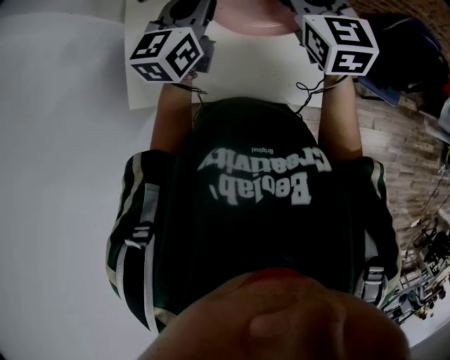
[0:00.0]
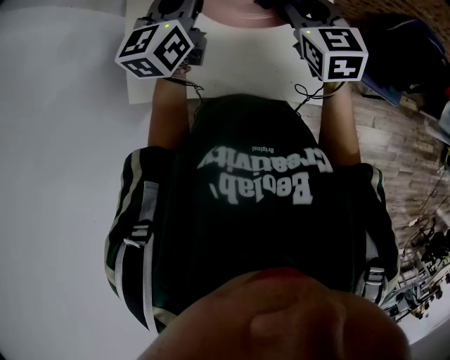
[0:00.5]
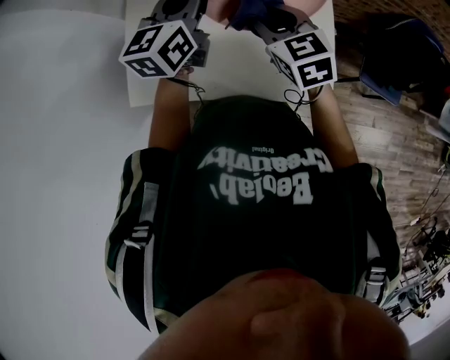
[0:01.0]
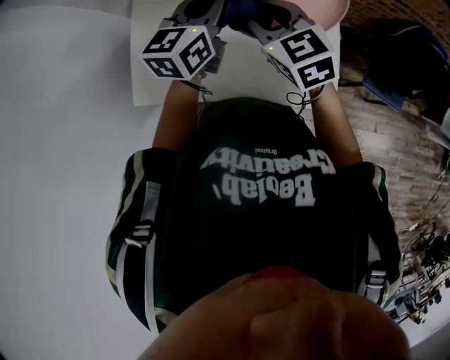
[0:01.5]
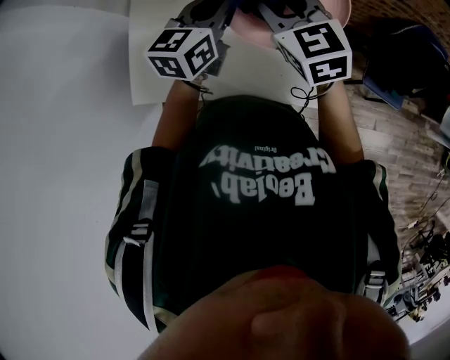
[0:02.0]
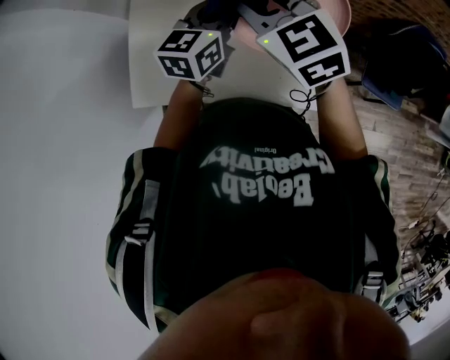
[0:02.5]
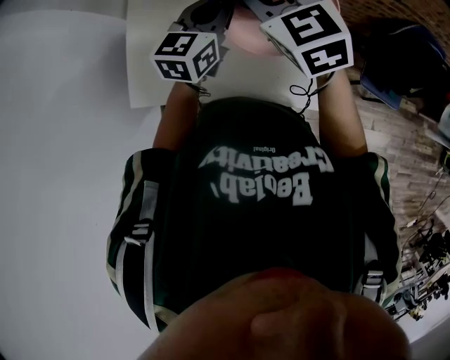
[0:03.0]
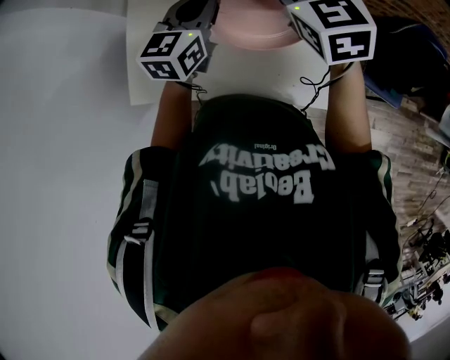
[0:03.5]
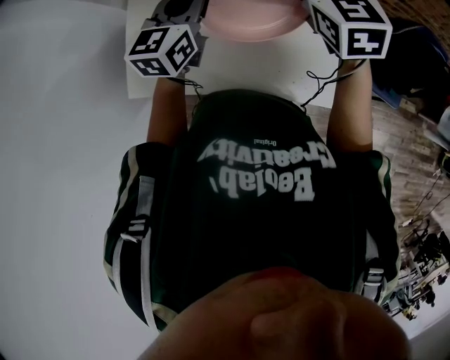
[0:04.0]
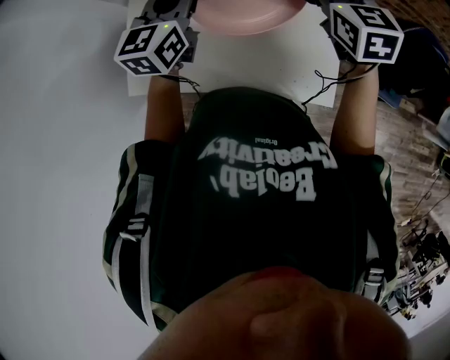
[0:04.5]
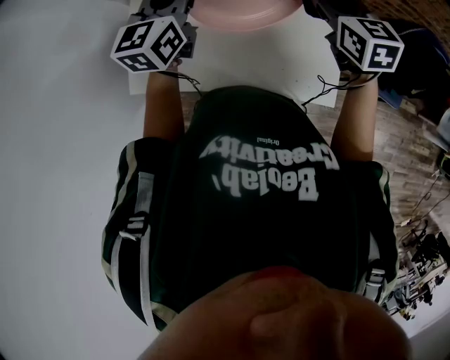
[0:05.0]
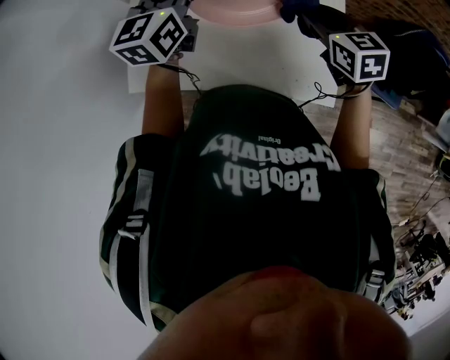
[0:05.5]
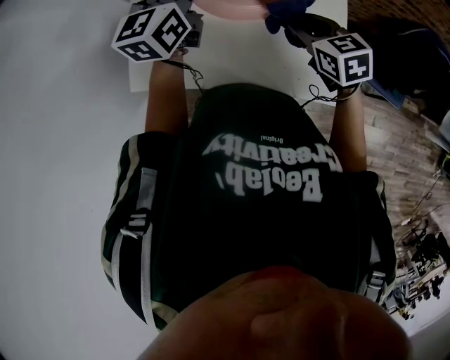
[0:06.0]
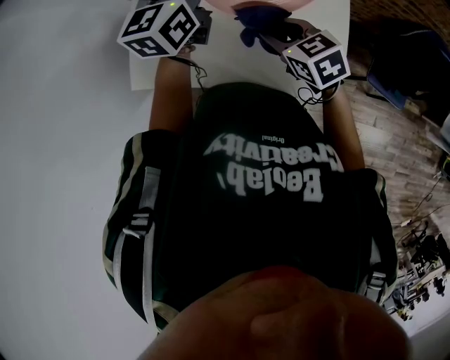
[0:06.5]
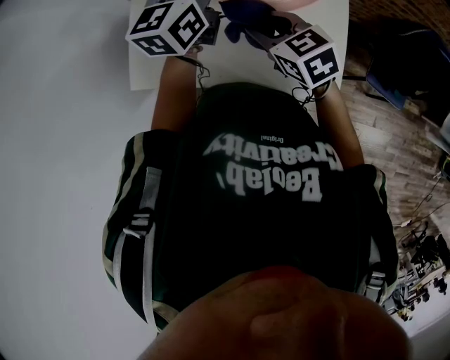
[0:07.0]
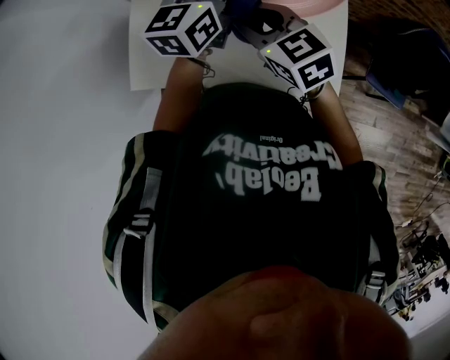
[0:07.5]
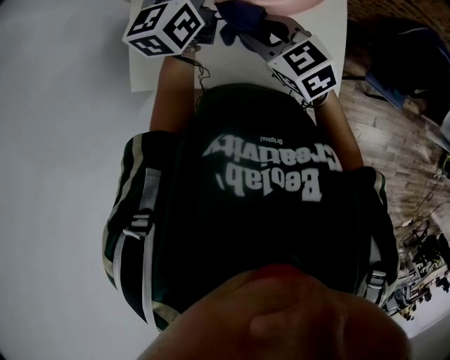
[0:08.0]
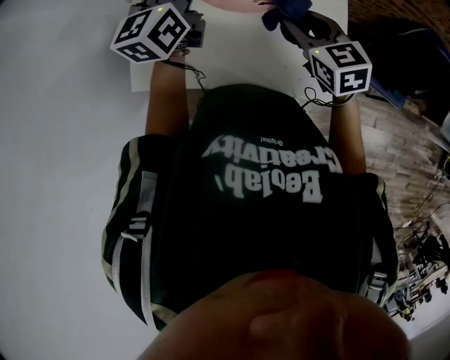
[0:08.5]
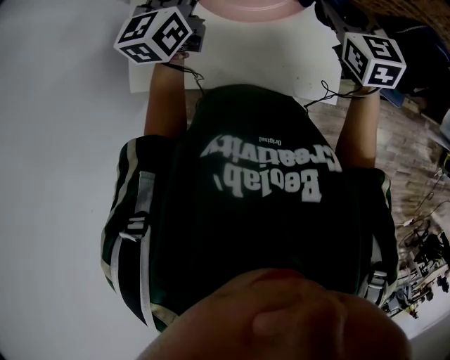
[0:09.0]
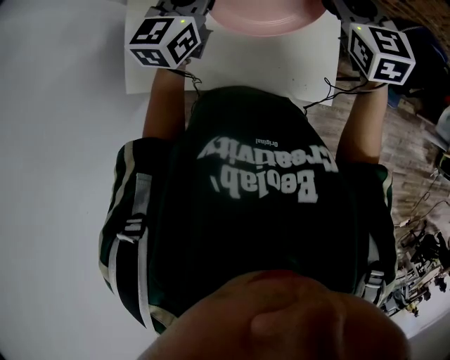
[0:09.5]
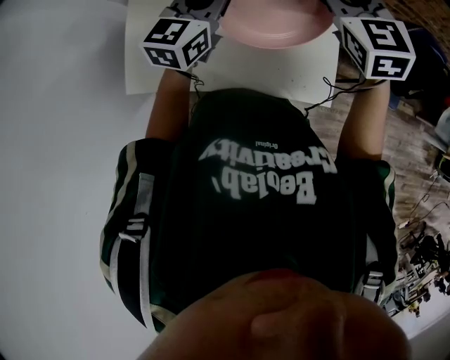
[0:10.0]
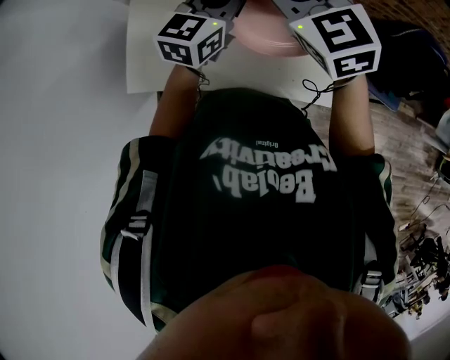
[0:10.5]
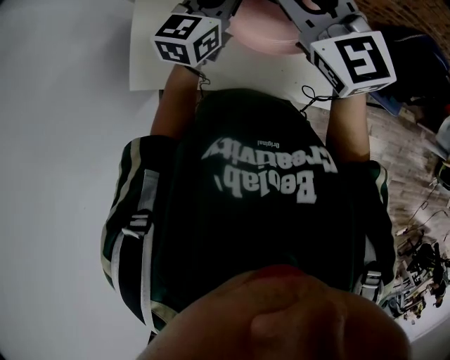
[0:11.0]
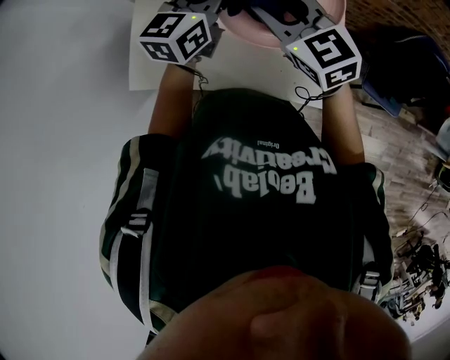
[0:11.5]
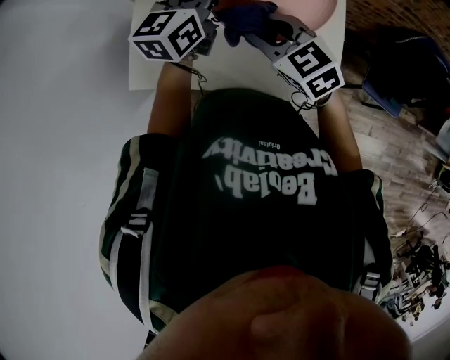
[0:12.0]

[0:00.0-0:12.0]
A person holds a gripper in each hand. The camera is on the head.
0:00.0 to 0:02.0: The right gripper shifts about 10 cm to the left.
0:02.0 to 0:04.0: The right gripper is displaced to the right and forward by roughly 10 cm.
0:04.0 to 0:06.0: The right gripper travels downward and backward by roughly 20 cm, and changes its angle by approximately 30 degrees.
0:06.0 to 0:08.0: The right gripper heads to the left, covering roughly 10 cm.
0:08.0 to 0:10.0: The left gripper shifts by approximately 5 cm; the right gripper moves to the right, upward and forward, roughly 20 cm, and swivels roughly 30 degrees.
0:10.0 to 0:12.0: The right gripper moves to the left, downward and backward, approximately 20 cm, and changes its angle by approximately 30 degrees.

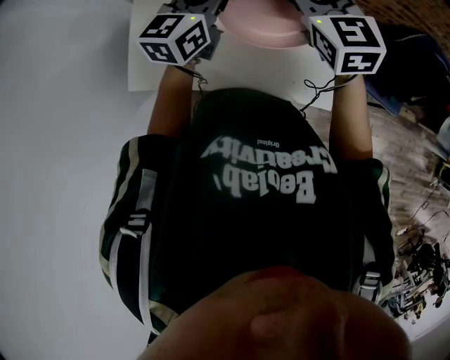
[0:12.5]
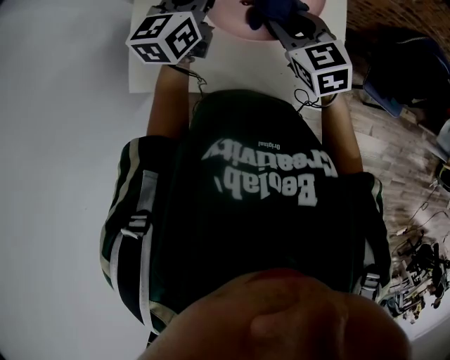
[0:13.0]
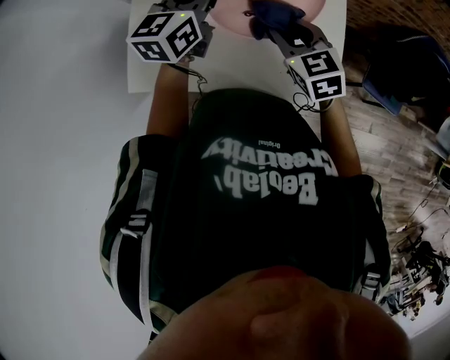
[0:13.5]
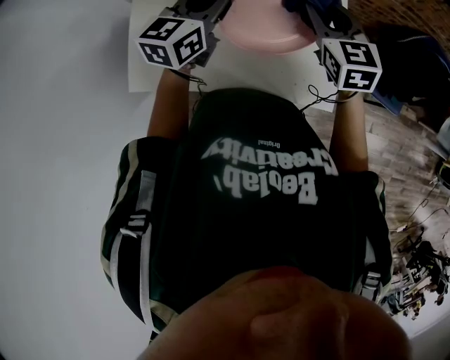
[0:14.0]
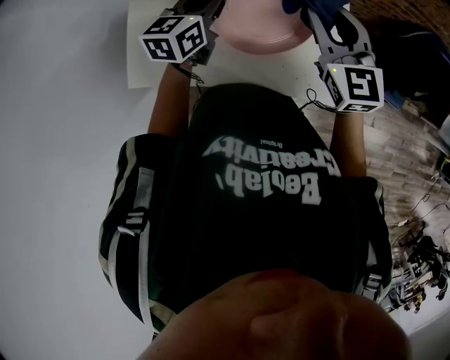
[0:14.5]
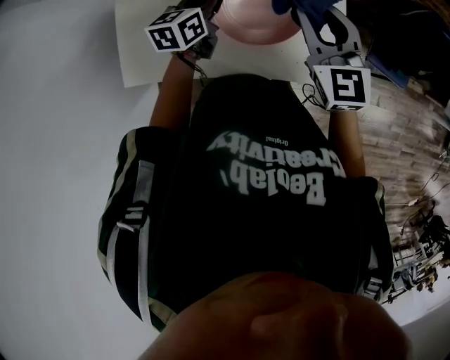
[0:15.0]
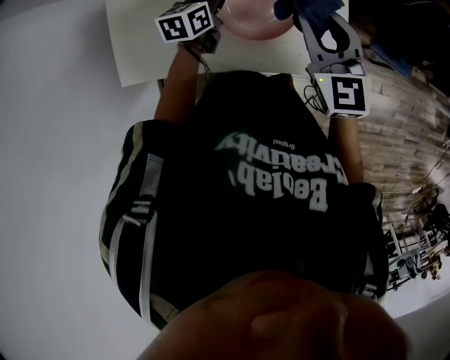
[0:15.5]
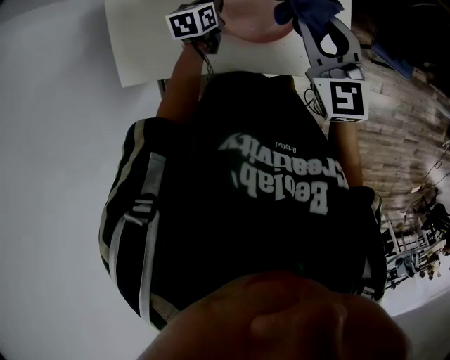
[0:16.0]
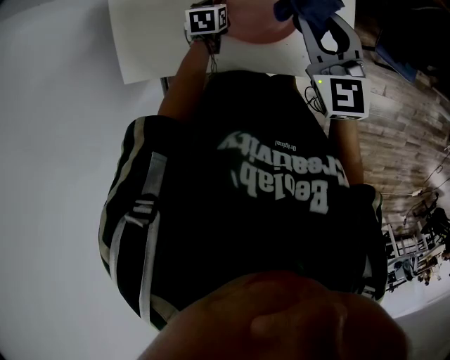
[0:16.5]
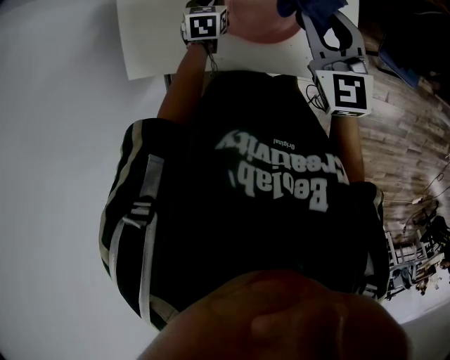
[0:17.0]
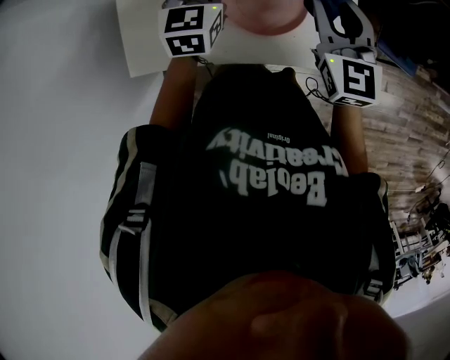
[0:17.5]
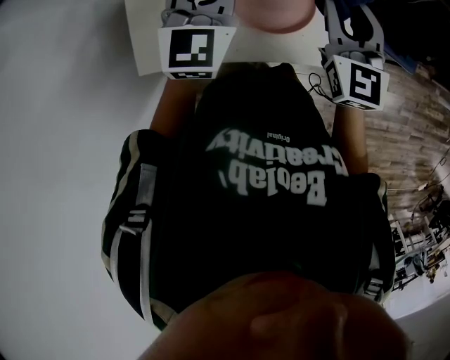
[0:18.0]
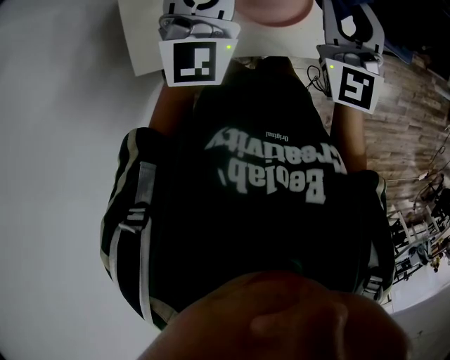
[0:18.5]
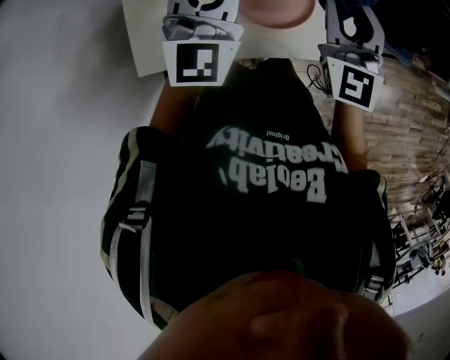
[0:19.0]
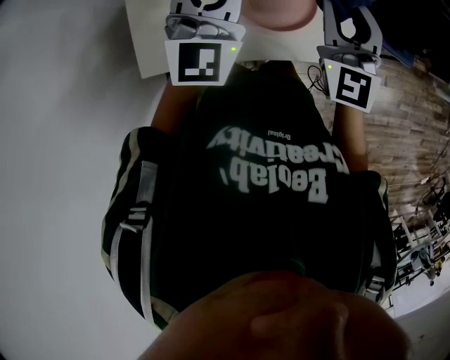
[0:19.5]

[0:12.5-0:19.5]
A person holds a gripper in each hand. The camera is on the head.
0:12.5 to 0:14.5: The right gripper goes downward and returns, roughly 15 cm each way. Meanwhile the left gripper heads downward, covering roughly 10 cm.
0:14.5 to 0:16.0: The right gripper heads downward, covering some 5 cm; the left gripper shifts some 20 cm downward, and turns by approximately 30 degrees.
0:16.0 to 0:17.5: The left gripper moves upward, about 20 cm, and turns by approximately 40 degrees.
0:17.5 to 0:19.5: The left gripper is displaced upward and backward by about 15 cm, and swivels some 40 degrees; the right gripper is displaced upward by about 5 cm.

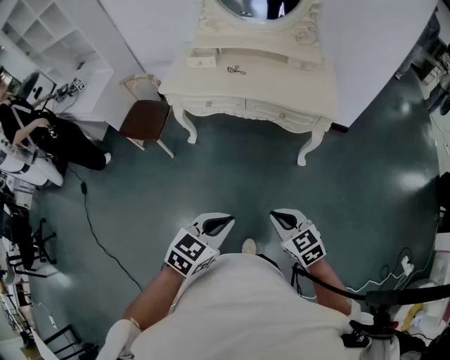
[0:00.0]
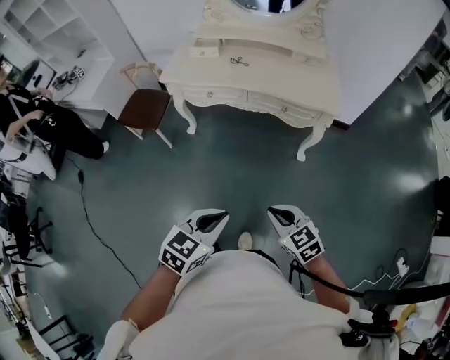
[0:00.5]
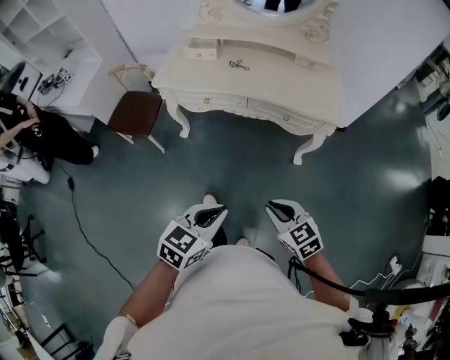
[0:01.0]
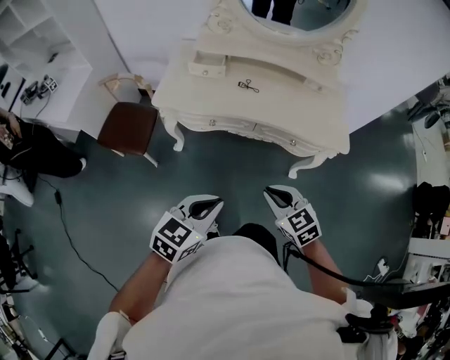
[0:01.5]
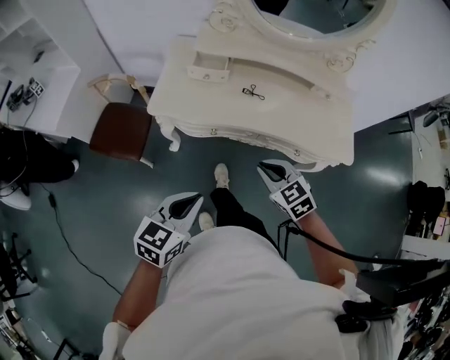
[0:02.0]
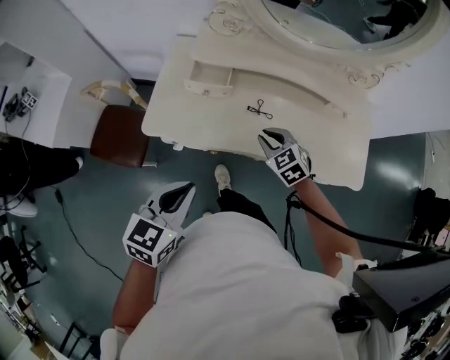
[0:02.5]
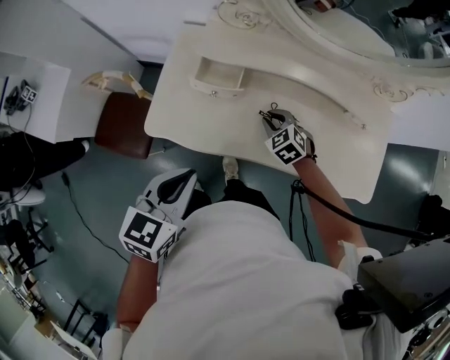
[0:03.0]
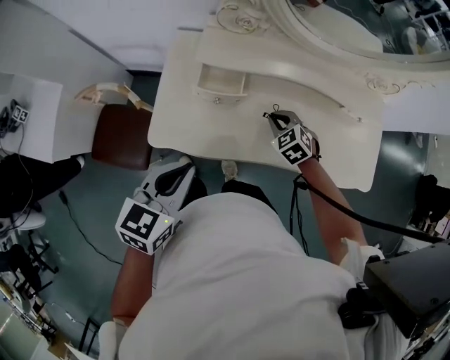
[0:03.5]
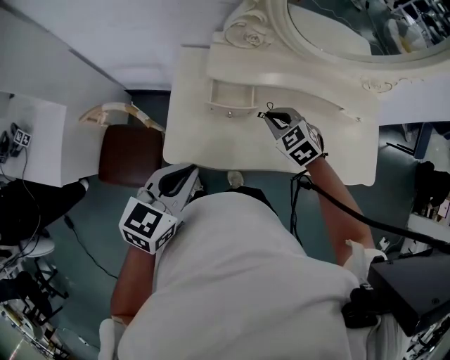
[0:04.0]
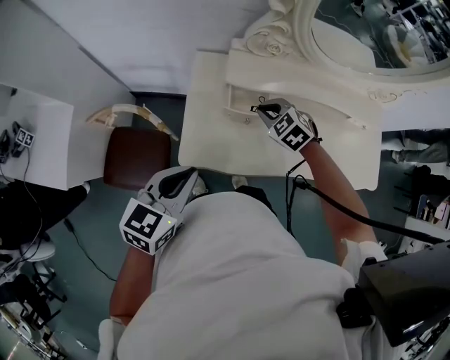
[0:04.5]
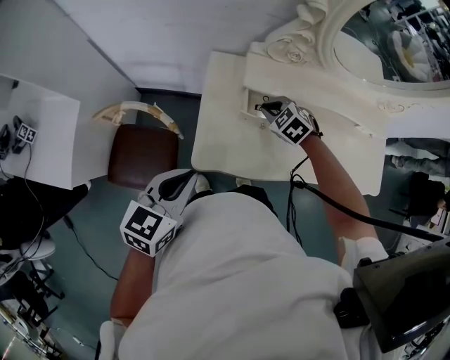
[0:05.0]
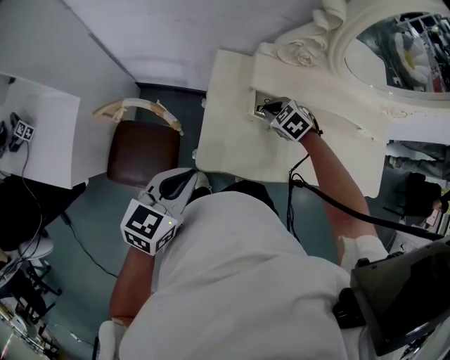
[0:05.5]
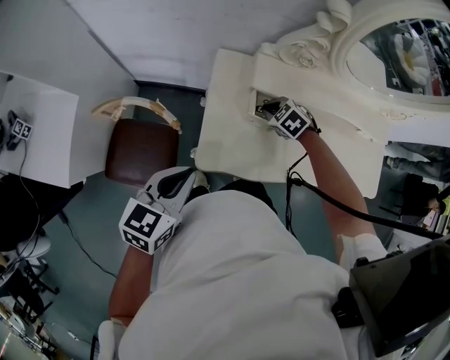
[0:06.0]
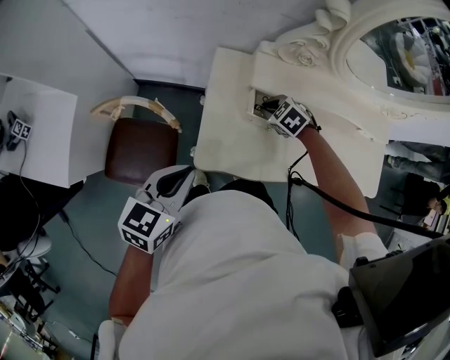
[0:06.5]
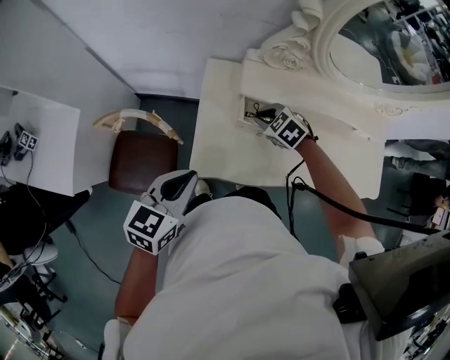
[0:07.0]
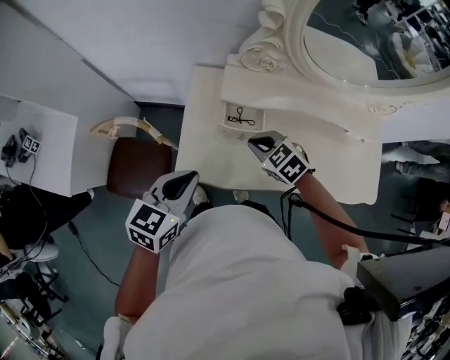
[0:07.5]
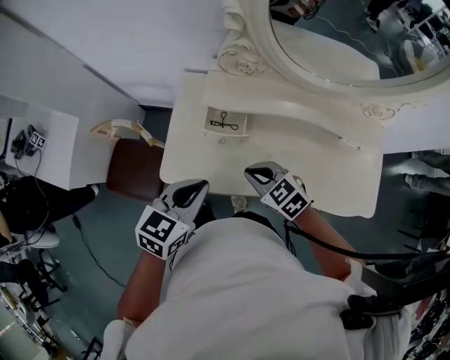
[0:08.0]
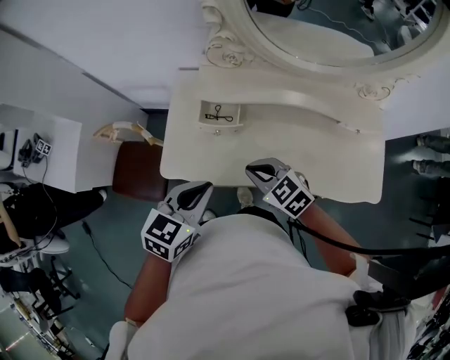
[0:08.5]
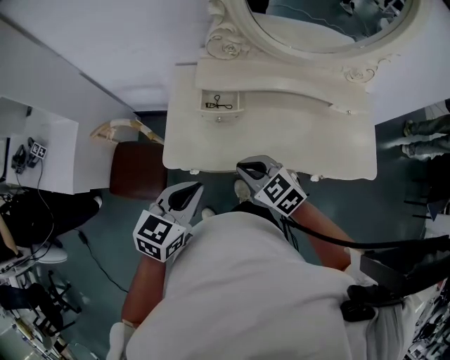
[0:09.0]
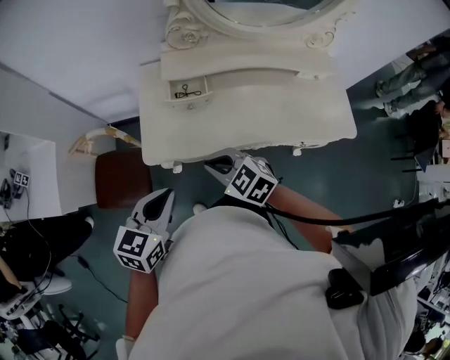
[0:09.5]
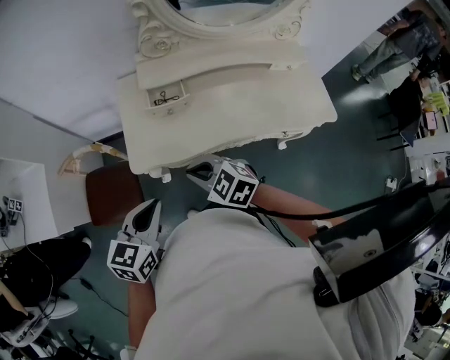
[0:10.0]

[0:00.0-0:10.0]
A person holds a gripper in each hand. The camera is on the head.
0:00.0 to 0:02.0: Both grippers are carried forward and to the left, some 50 cm.
0:02.0 to 0:04.0: The left gripper shifts about 35 cm forward and to the left. Meanwhile the right gripper travels forward by some 40 cm.
0:04.0 to 0:06.0: The left gripper travels to the left by approximately 15 cm; the right gripper moves to the left, downward and forward, about 20 cm.
0:06.0 to 0:08.0: The left gripper travels to the right by approximately 25 cm. Meanwhile the right gripper shifts some 25 cm backward, upward and to the right, and changes its angle by approximately 30 degrees.
0:08.0 to 0:10.0: The two grippers go approximately 20 cm backward and to the left.
